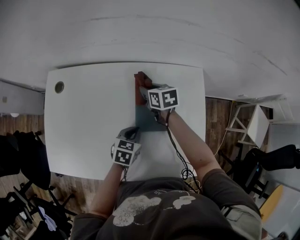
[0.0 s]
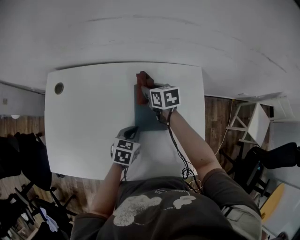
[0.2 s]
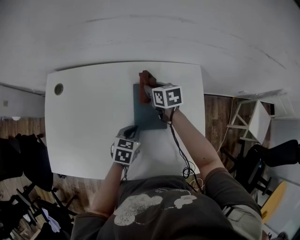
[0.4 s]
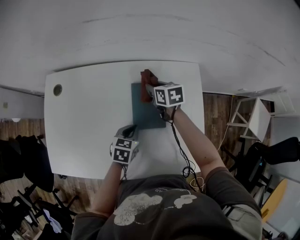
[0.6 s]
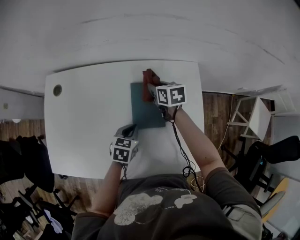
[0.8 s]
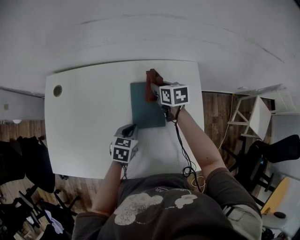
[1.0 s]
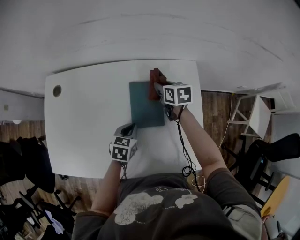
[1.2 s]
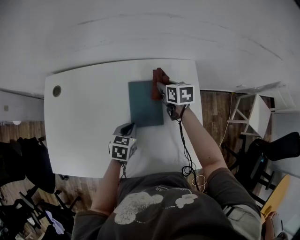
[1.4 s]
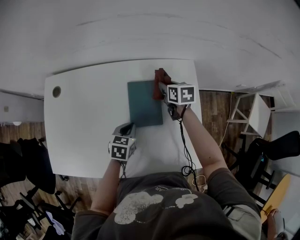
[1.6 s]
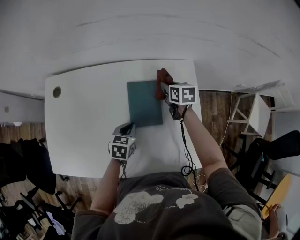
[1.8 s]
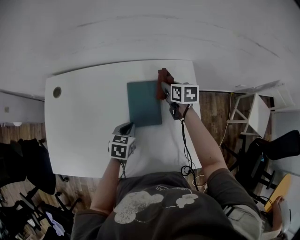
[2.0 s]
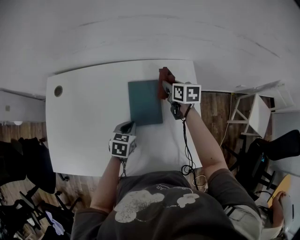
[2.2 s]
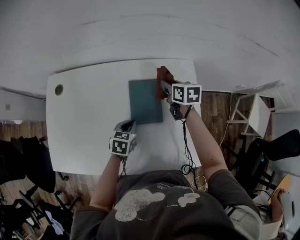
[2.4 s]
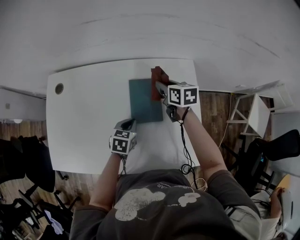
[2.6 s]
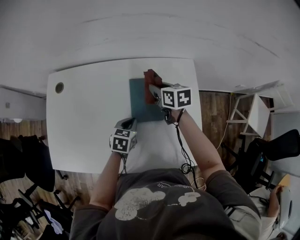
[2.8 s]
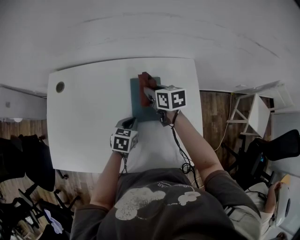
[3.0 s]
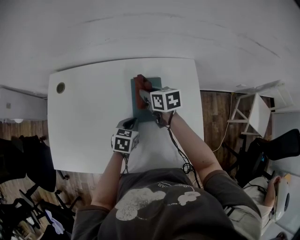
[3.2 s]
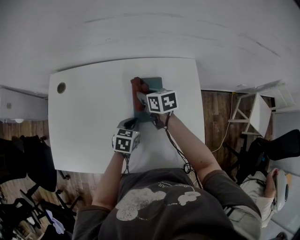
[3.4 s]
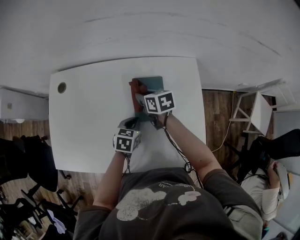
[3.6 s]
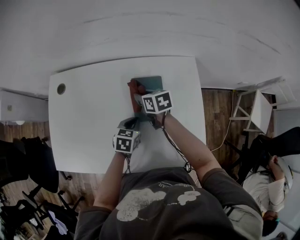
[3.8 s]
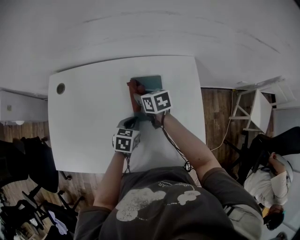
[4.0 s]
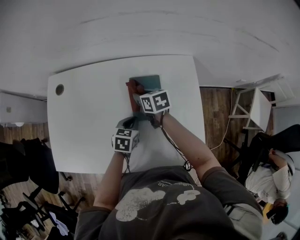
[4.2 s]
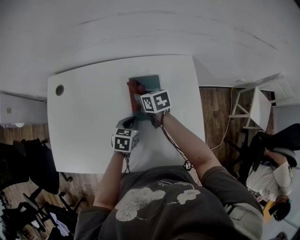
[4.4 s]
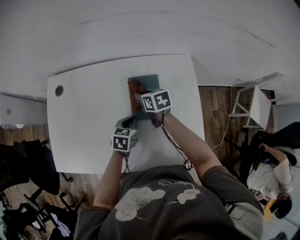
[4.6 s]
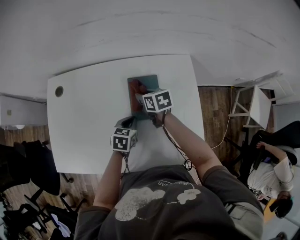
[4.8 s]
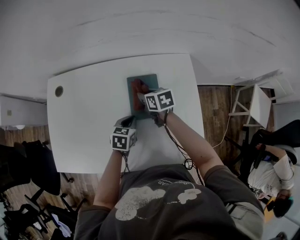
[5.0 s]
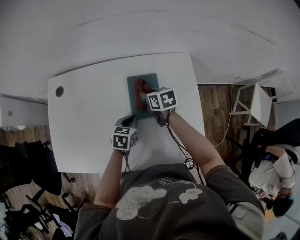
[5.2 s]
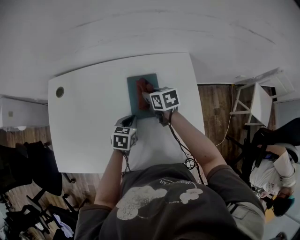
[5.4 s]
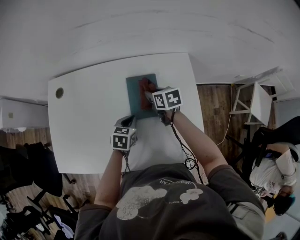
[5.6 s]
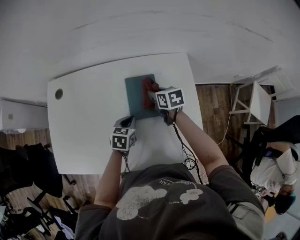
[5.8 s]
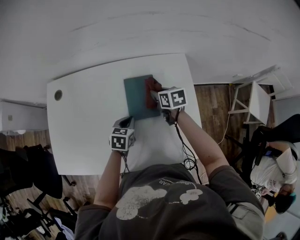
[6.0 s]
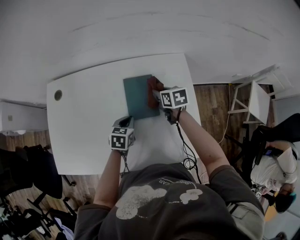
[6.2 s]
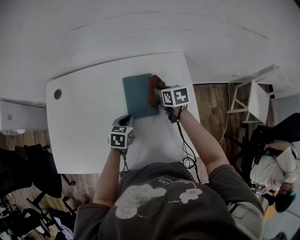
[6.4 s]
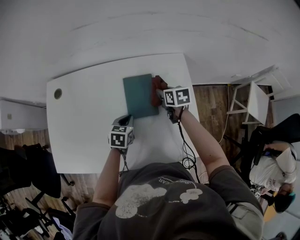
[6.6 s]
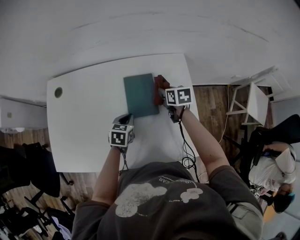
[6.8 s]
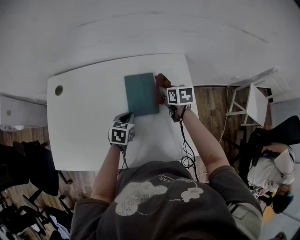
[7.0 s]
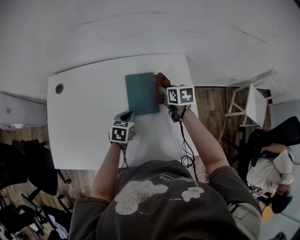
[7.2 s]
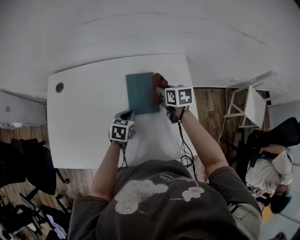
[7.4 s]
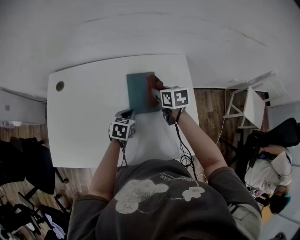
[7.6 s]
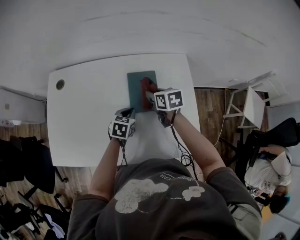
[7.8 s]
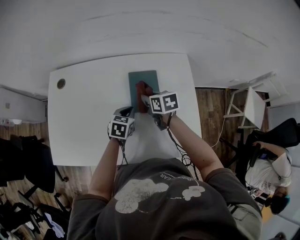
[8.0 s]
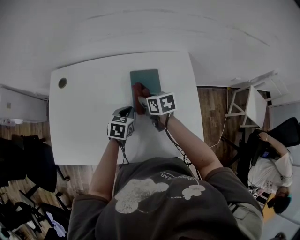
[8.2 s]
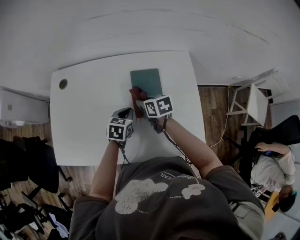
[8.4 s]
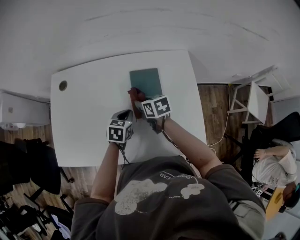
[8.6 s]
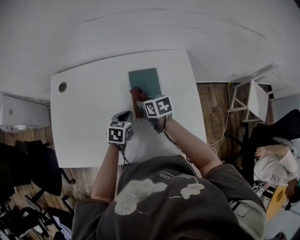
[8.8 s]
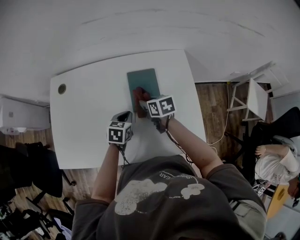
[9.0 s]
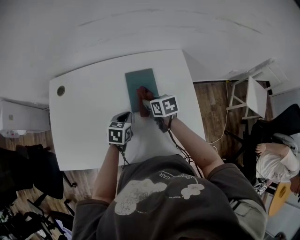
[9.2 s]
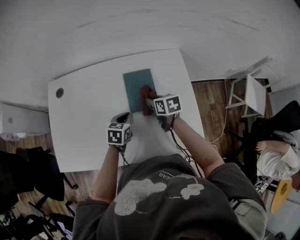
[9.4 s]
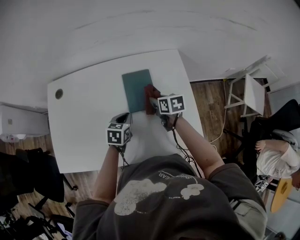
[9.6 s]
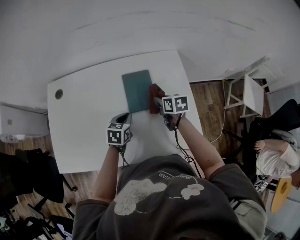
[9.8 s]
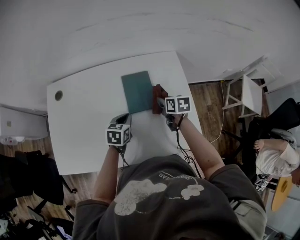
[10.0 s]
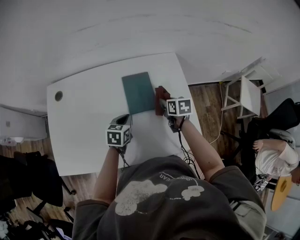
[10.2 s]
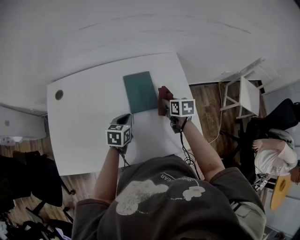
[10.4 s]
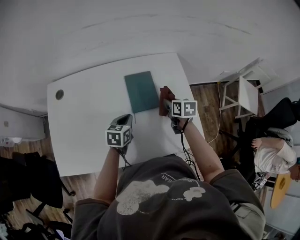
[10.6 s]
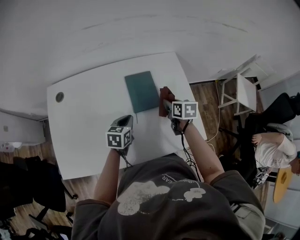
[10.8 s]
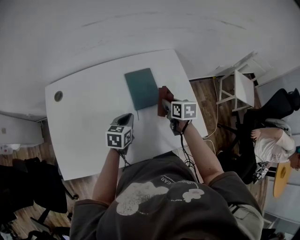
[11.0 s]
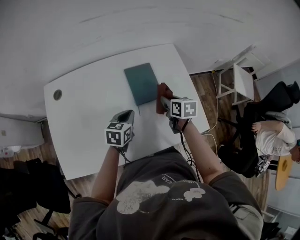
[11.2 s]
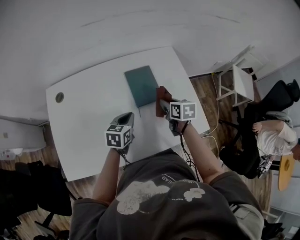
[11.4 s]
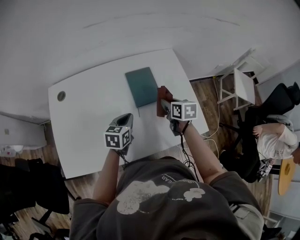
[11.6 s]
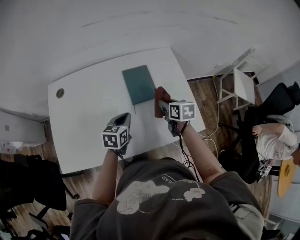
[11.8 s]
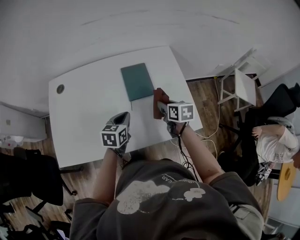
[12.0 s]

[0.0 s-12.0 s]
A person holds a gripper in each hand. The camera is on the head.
0.0 to 1.6 s: The right gripper moves to the right, approximately 15 cm.
1.6 to 3.0 s: The right gripper is displaced to the left and backward by about 10 cm.
3.0 to 4.4 s: The right gripper shifts by approximately 5 cm.
4.4 to 6.0 s: The right gripper goes roughly 10 cm to the right.
6.0 to 7.6 s: The right gripper shifts by some 5 cm.
7.6 to 9.0 s: The right gripper is displaced to the left and backward by roughly 10 cm.
9.0 to 10.4 s: The right gripper heads to the right, covering approximately 15 cm.
10.4 to 12.0 s: The two grippers go roughly 10 cm backward.

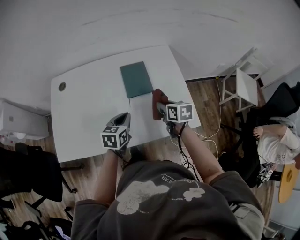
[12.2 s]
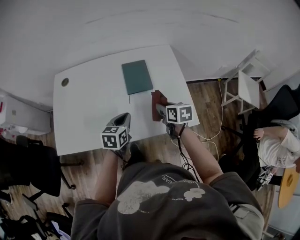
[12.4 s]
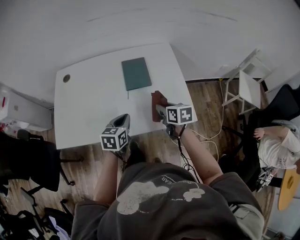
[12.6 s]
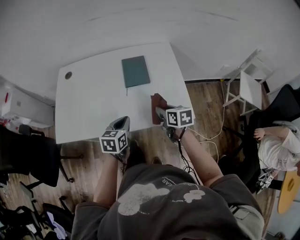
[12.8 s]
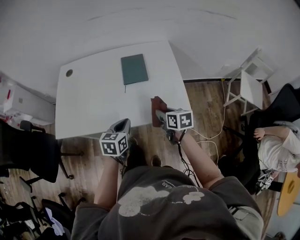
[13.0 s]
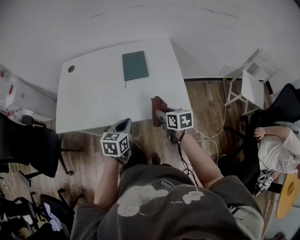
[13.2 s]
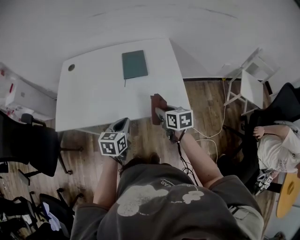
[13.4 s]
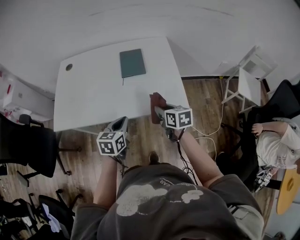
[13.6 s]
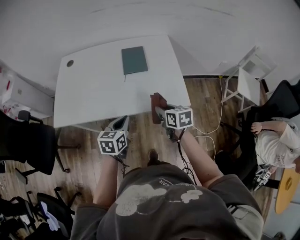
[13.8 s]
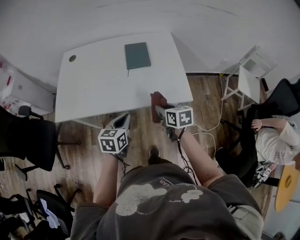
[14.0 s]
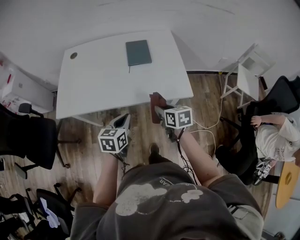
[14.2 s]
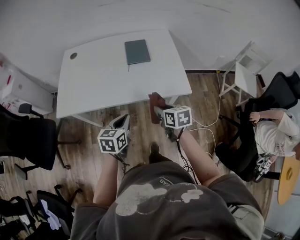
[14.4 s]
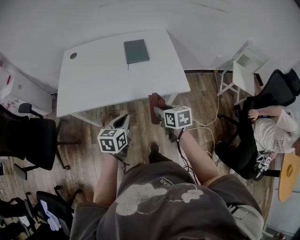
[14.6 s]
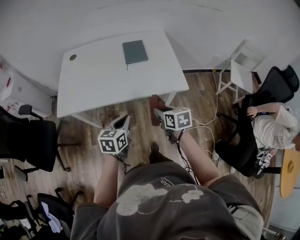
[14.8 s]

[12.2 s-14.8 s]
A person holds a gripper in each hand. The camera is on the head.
12.2 to 13.4 s: The two grippers go some 20 cm backward.
13.4 to 14.8 s: The two grippers go approximately 15 cm backward and to the left.

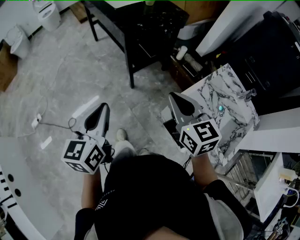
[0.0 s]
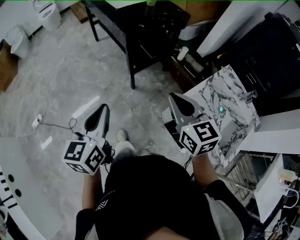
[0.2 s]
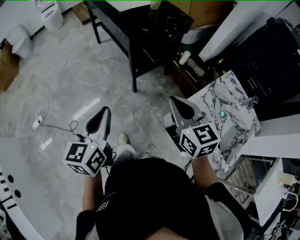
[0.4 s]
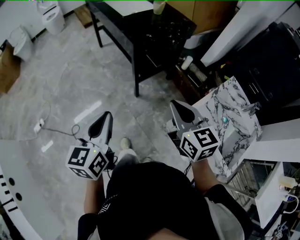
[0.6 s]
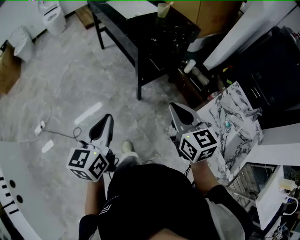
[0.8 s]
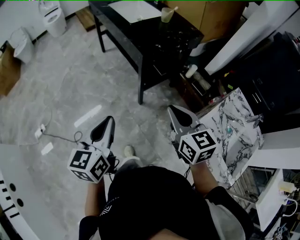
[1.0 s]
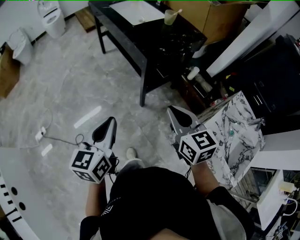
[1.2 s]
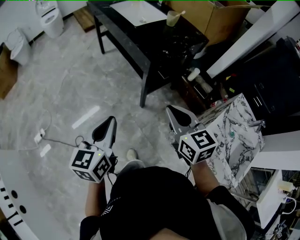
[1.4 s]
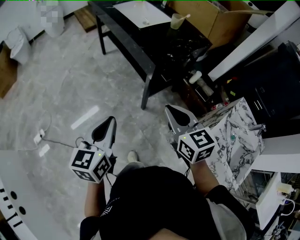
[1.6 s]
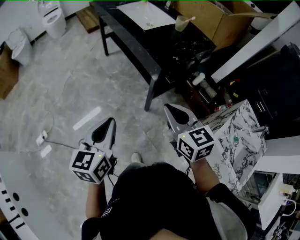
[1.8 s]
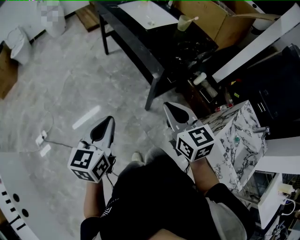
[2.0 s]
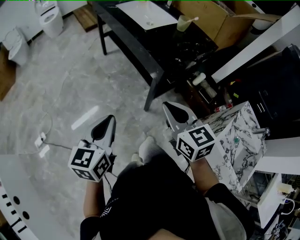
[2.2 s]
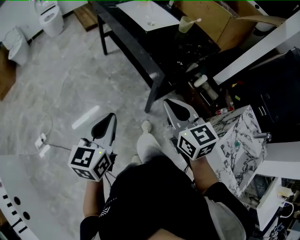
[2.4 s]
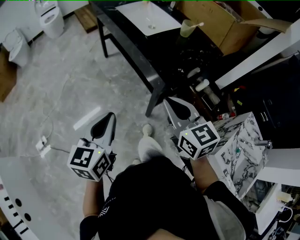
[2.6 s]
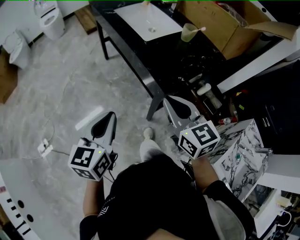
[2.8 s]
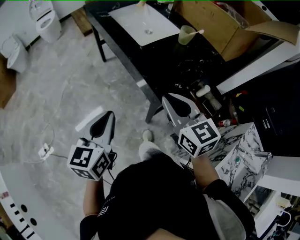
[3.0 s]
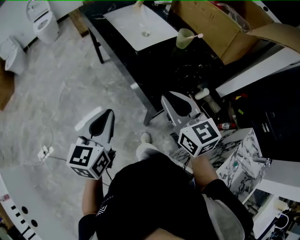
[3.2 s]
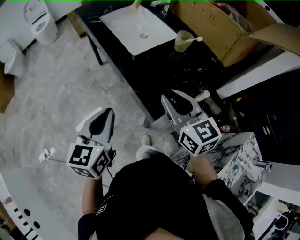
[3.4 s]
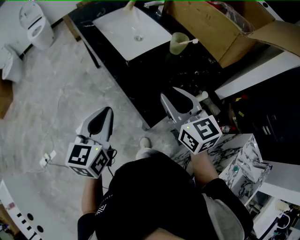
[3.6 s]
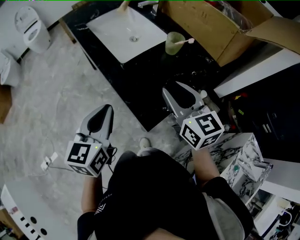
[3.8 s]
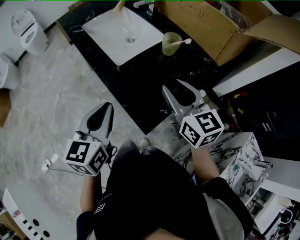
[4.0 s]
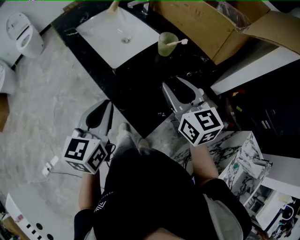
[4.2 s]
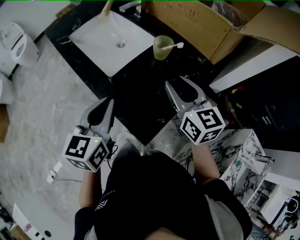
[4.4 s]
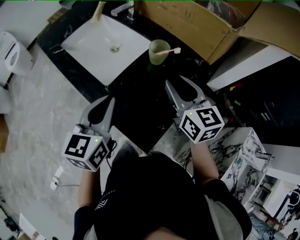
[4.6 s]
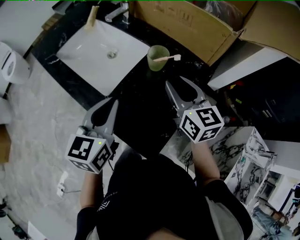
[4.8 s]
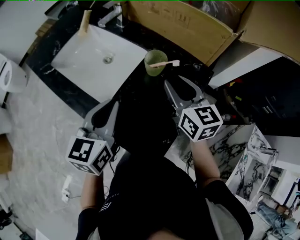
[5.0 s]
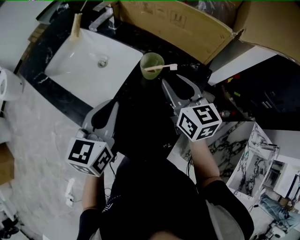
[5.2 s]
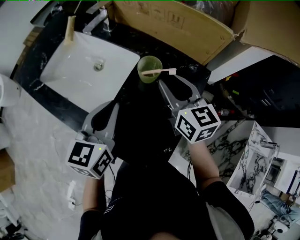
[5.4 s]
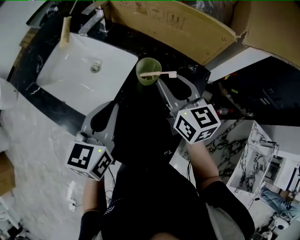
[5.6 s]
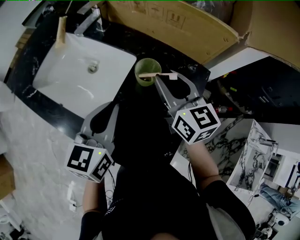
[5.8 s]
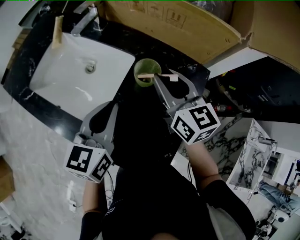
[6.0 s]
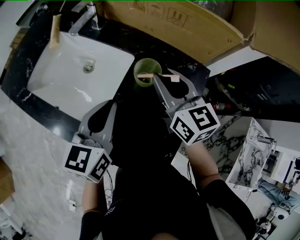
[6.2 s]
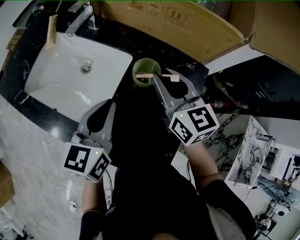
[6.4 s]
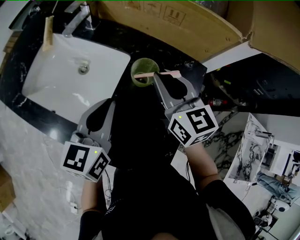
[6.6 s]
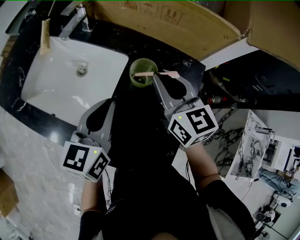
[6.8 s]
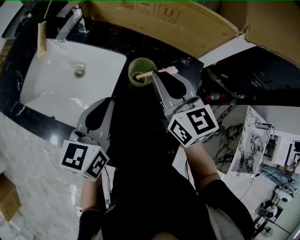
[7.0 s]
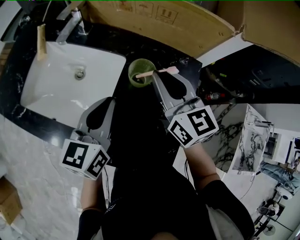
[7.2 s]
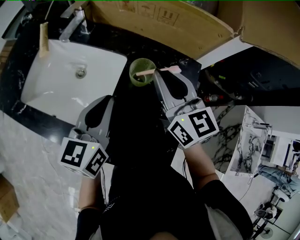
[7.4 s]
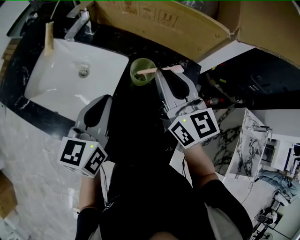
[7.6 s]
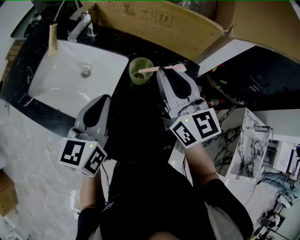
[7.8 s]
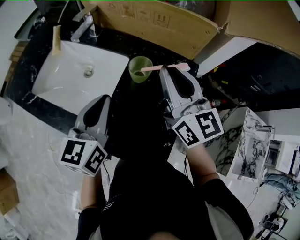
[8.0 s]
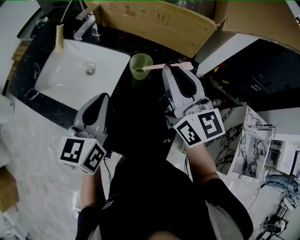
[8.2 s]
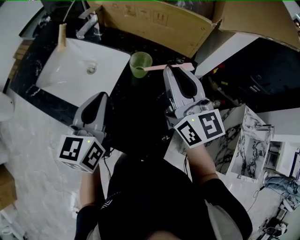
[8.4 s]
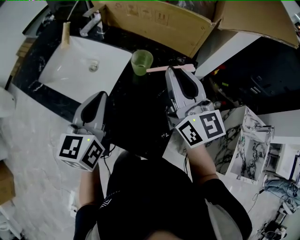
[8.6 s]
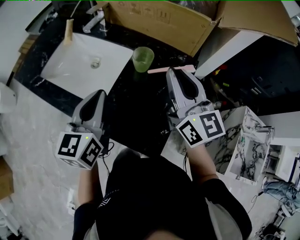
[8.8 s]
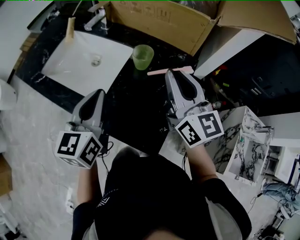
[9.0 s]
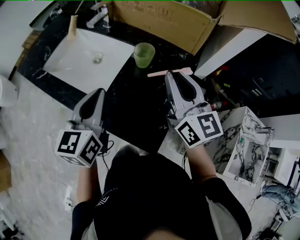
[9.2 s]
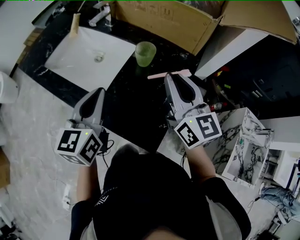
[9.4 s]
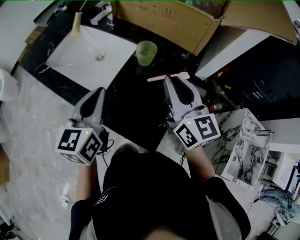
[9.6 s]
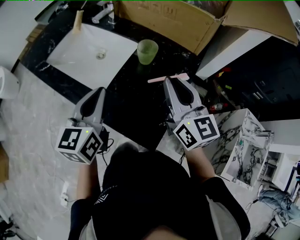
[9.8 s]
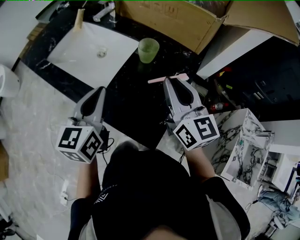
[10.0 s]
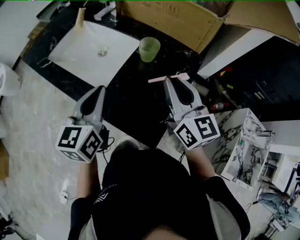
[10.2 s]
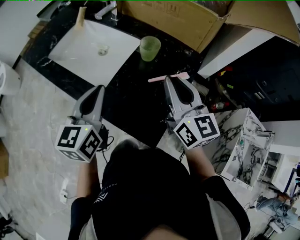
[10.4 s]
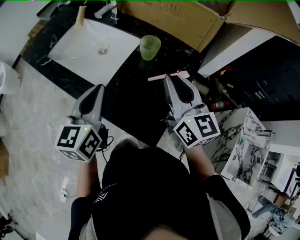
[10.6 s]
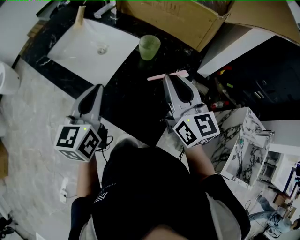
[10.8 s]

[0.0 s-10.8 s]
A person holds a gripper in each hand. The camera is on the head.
0.0 to 1.6 s: The left gripper shifts roughly 20 cm forward and to the left, while the right gripper moves to the left and forward, approximately 20 cm.
1.6 to 3.0 s: Both grippers move forward, about 20 cm.
3.0 to 4.6 s: The two grippers go about 30 cm forward and to the right. The right gripper swivels about 20 degrees, and opens up.
4.6 to 6.2 s: The two grippers go about 15 cm forward.
6.2 to 7.8 s: The right gripper travels upward by about 5 cm.
7.8 to 9.2 s: The grippers both shift backward by some 10 cm.
9.2 to 10.8 s: The grippers make only small movements.
